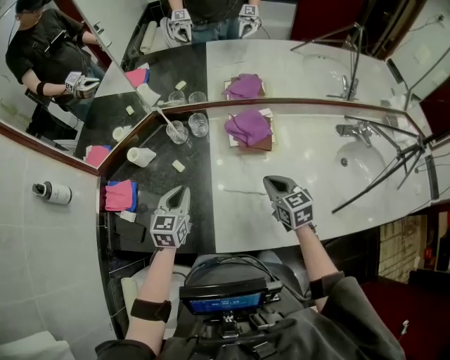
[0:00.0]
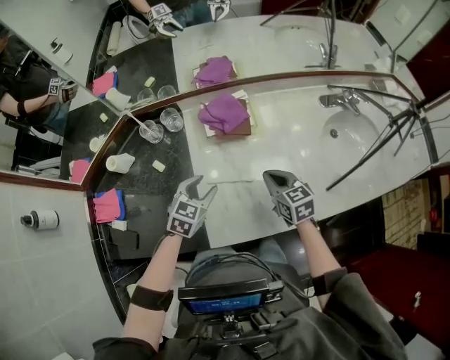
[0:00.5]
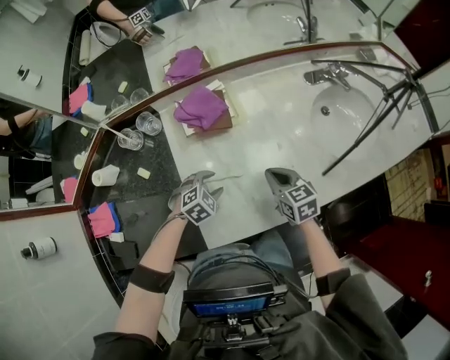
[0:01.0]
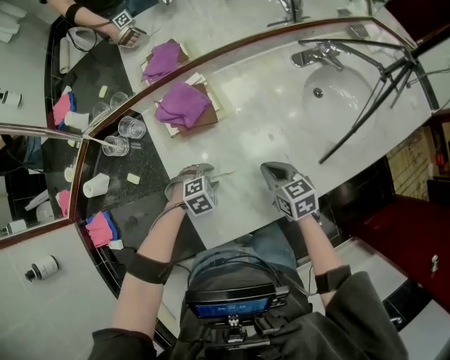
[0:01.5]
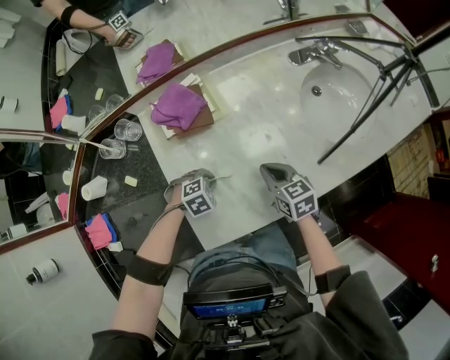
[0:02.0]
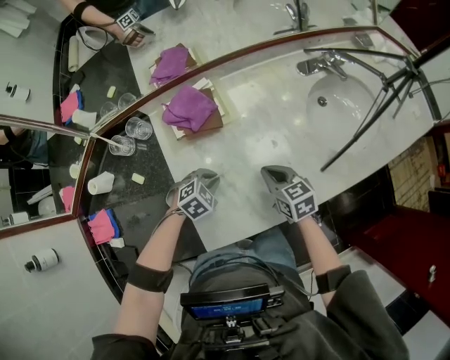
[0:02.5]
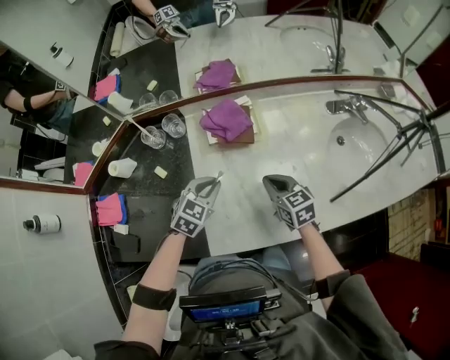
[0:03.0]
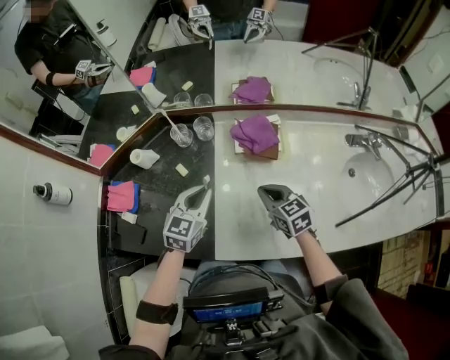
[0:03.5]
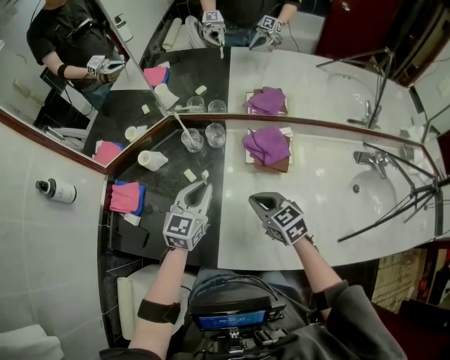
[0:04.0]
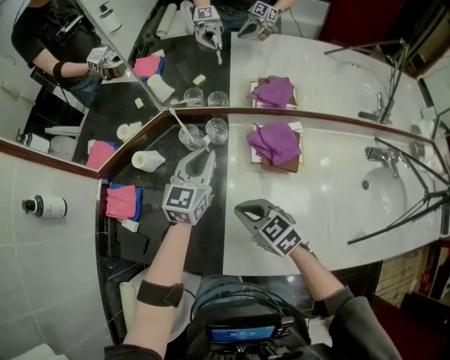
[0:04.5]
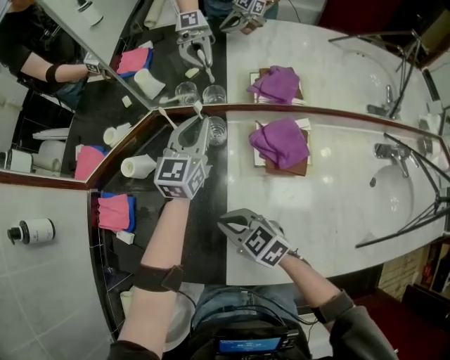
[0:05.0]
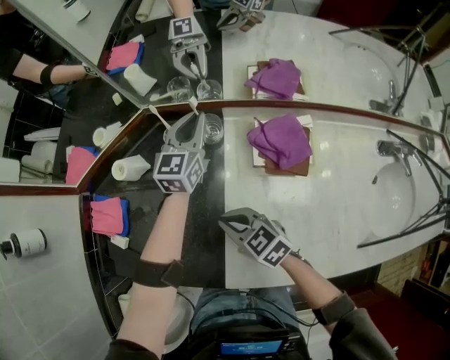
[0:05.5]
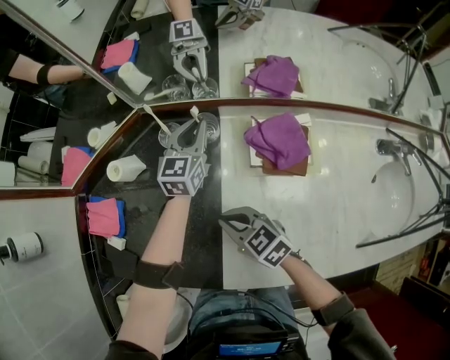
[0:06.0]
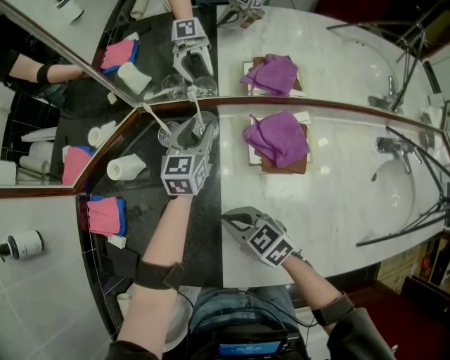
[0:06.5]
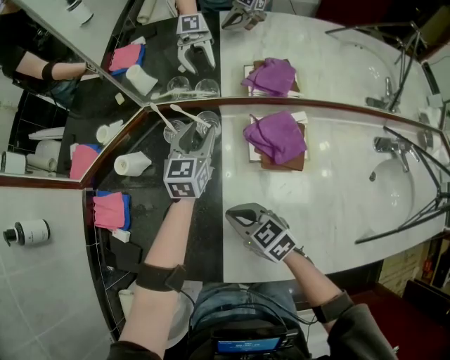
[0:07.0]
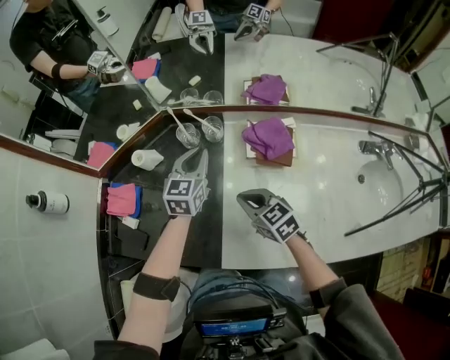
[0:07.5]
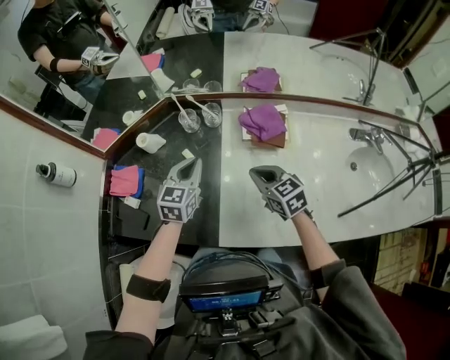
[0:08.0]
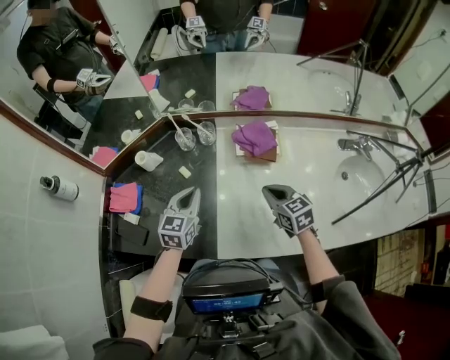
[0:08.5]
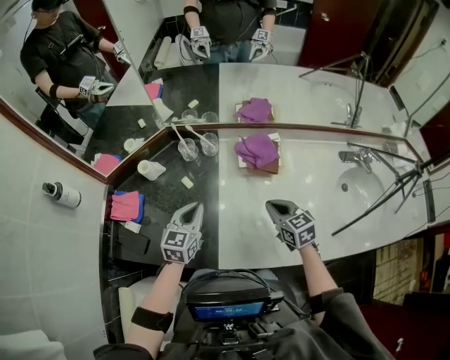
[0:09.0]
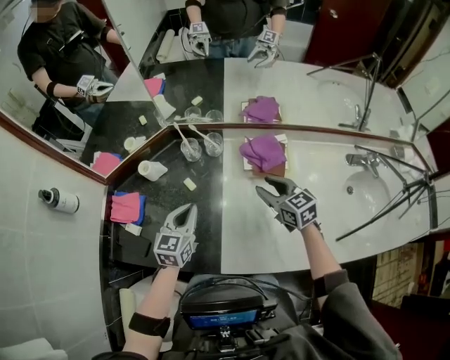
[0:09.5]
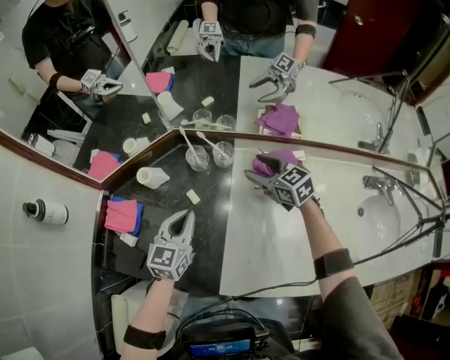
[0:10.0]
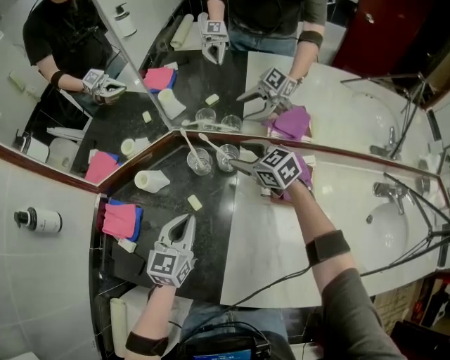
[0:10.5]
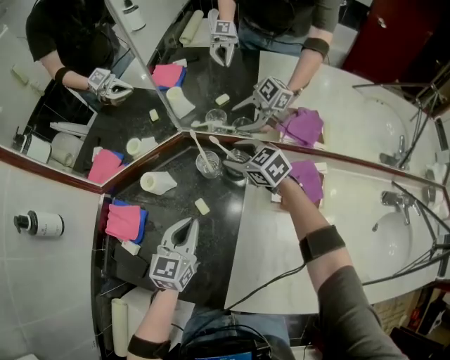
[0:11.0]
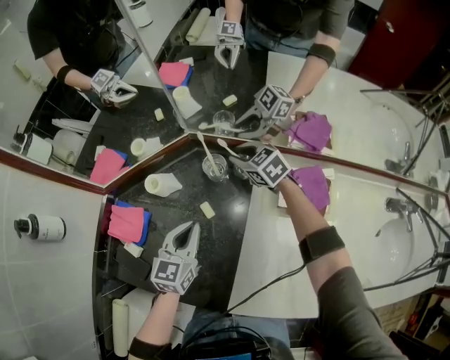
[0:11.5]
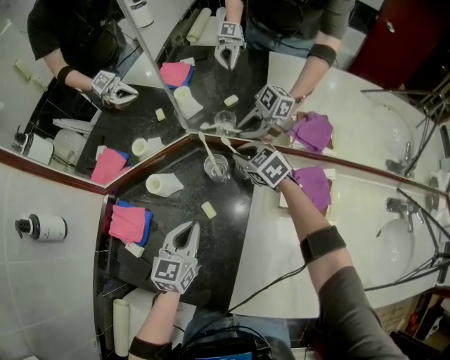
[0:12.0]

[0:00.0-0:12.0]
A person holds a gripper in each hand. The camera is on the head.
0:00.0 to 0:02.0: The right gripper ends up some 20 cm from where it was, and swivels approximately 20 degrees. Meanwhile the left gripper ends up some 30 cm from where it was, tips its fingers downward by about 40 degrees, and opens, then closes again.
0:02.0 to 0:04.0: The right gripper ends up approximately 25 cm from where it was, and changes its angle by about 40 degrees; the left gripper is displaced upward by some 25 cm, and tips its fingers upward by about 50 degrees.
0:04.0 to 0:06.0: The left gripper shifts about 25 cm forward and downward, while the right gripper travels to the left, downward and forward by roughly 15 cm.
0:06.0 to 0:08.0: The right gripper heads to the right, upward and backward, covering approximately 15 cm; the left gripper shifts approximately 25 cm backward, to the left and upward, and opens, then closes again.
0:08.0 to 0:10.0: The right gripper travels forward by roughly 20 cm, and opens up; the left gripper moves to the left, approximately 5 cm, and reaches some 5 cm backward, then returns.
0:10.0 to 0:12.0: The left gripper is displaced downward by approximately 5 cm, while the right gripper goes roughly 20 cm forward, to the left and downward, and closes up.

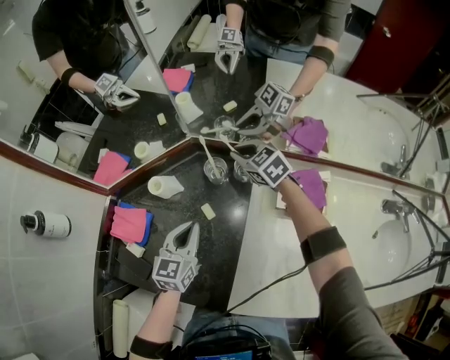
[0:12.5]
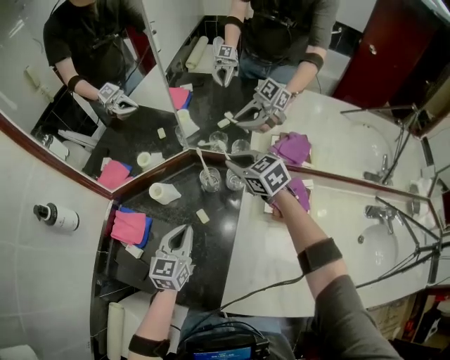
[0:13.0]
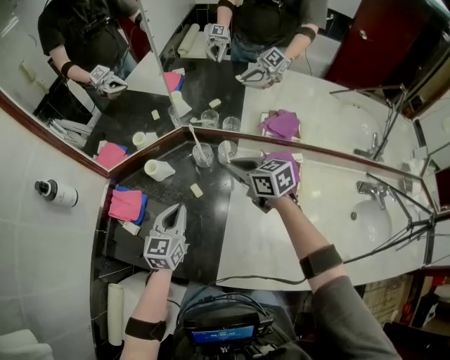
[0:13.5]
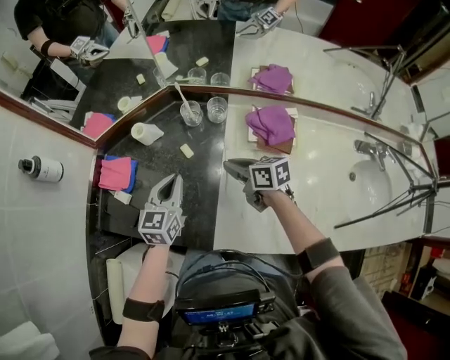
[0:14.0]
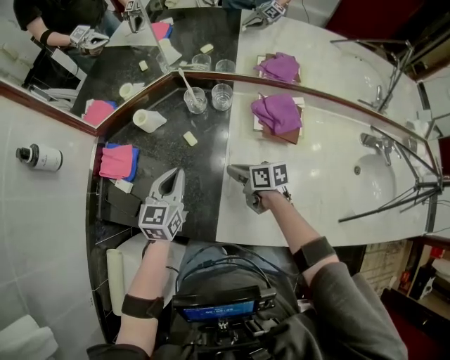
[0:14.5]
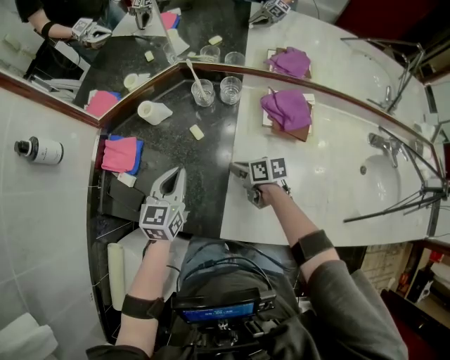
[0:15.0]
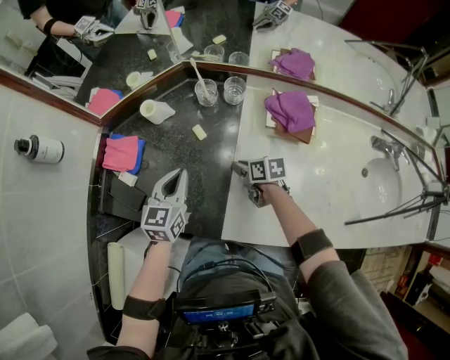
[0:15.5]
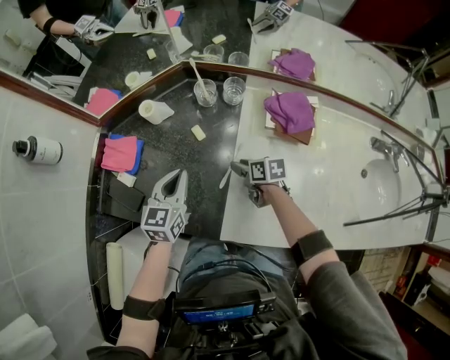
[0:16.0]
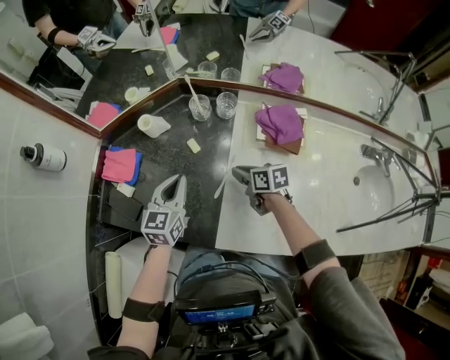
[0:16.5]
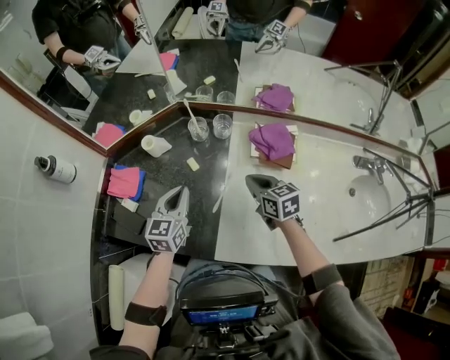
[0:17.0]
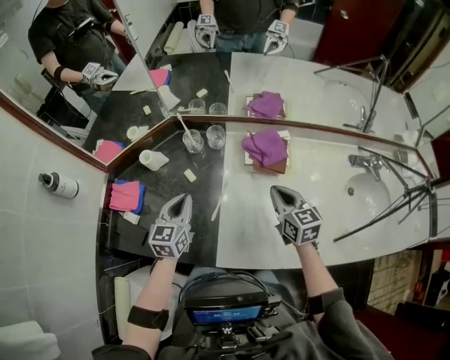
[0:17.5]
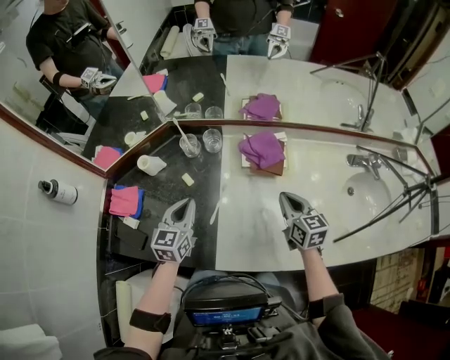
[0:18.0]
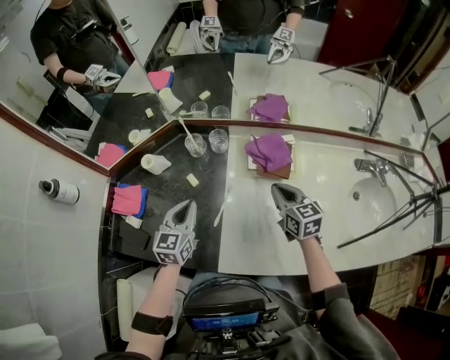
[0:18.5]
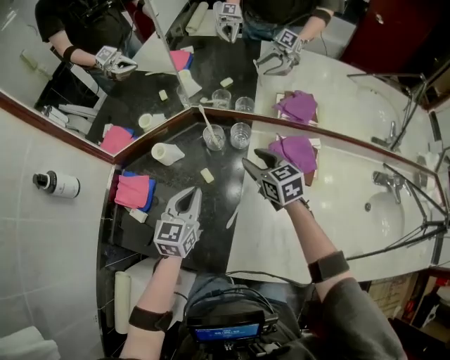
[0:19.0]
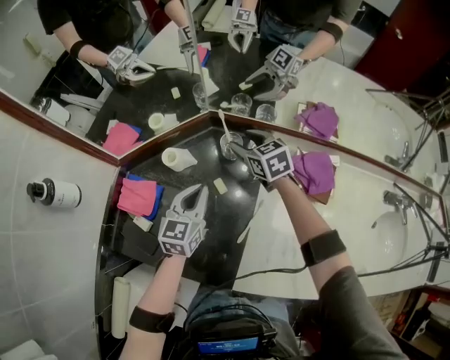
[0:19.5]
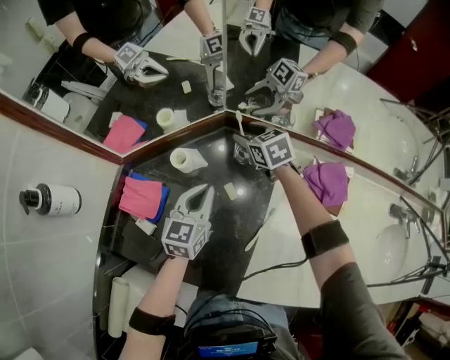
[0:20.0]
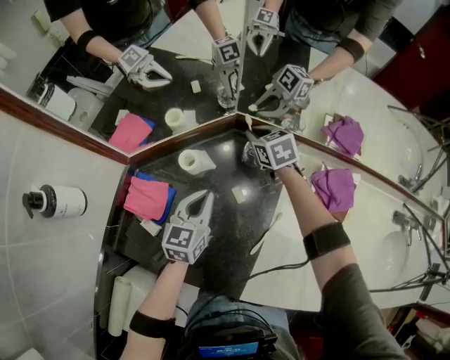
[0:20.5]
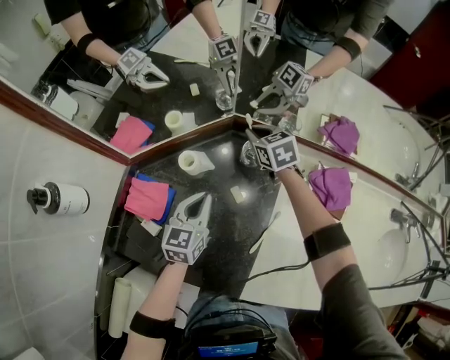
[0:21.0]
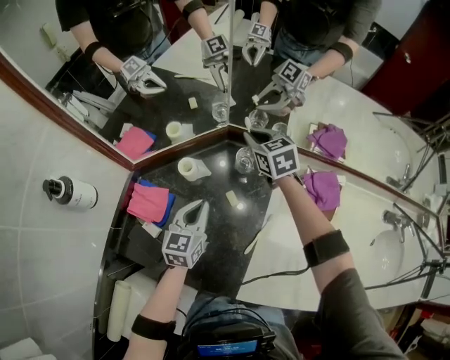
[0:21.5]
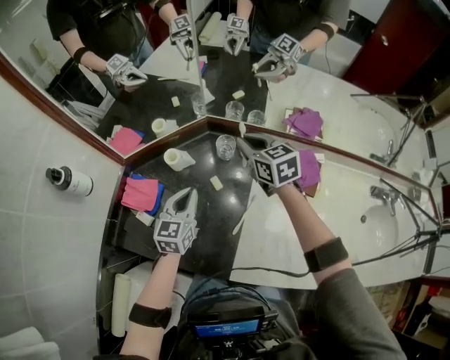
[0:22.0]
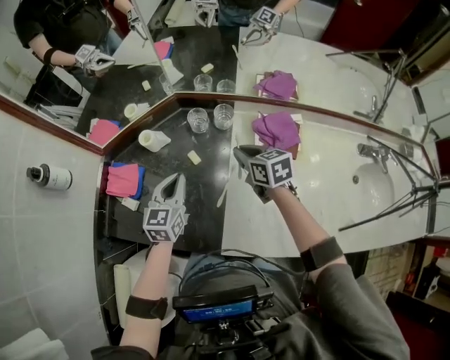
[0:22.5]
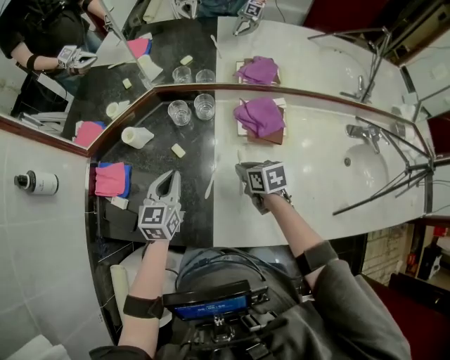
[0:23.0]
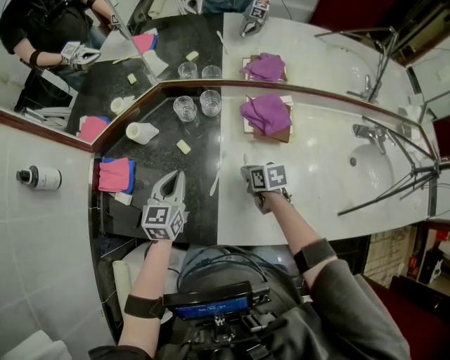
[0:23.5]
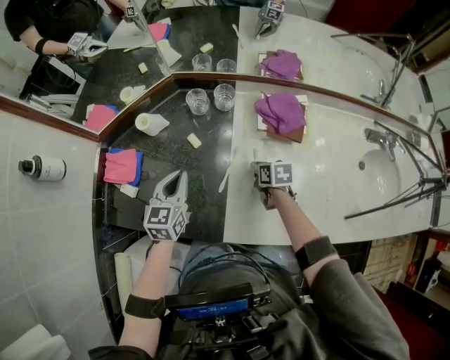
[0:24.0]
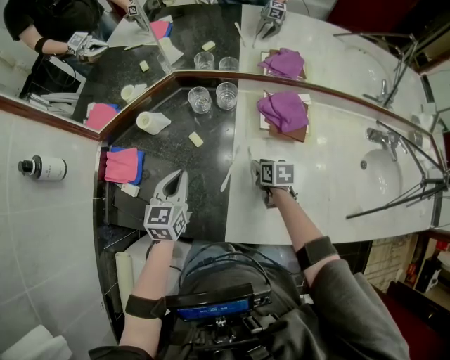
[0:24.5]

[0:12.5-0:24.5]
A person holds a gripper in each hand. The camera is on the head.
0:12.5 to 0:14.5: The left gripper goes roughly 10 cm backward. The right gripper heads backward, covering approximately 30 cm, and rolls clockwise, seen from behind, by about 60 degrees.
0:14.5 to 0:16.5: The right gripper opens, then closes once more.
0:16.5 to 0:18.5: The left gripper is displaced to the right by approximately 5 cm; the right gripper is displaced to the right and upward by some 20 cm, and swivels roughly 40 degrees.
0:18.5 to 0:20.5: The right gripper is displaced forward and to the left by about 40 cm, changes its angle by some 30 degrees, and opens, then closes again. Meanwhile the left gripper travels forward, to the left and downward by roughly 20 cm.
0:20.5 to 0:22.5: The right gripper moves backward and to the right, about 25 cm, and swivels some 20 degrees. The left gripper goes roughly 15 cm backward, upward and to the right.
0:22.5 to 0:24.5: The right gripper is displaced downward and backward by roughly 20 cm, changes its angle by roughly 30 degrees, and opens.

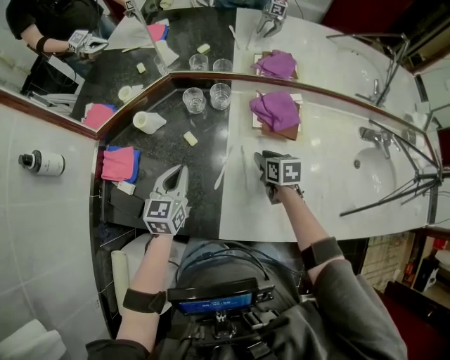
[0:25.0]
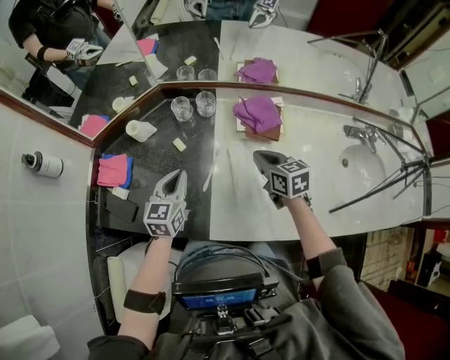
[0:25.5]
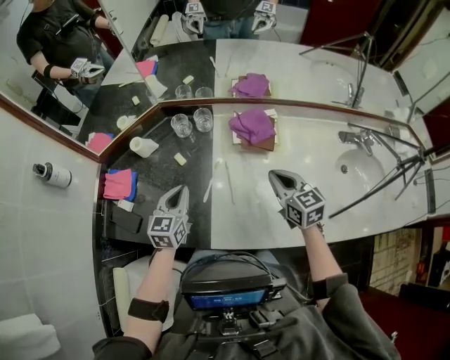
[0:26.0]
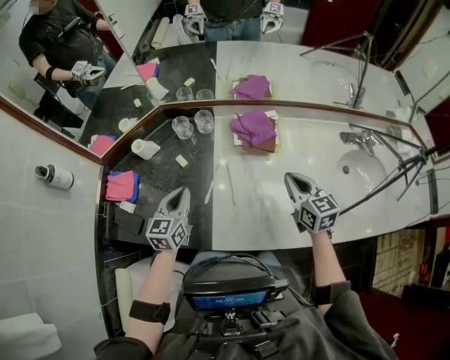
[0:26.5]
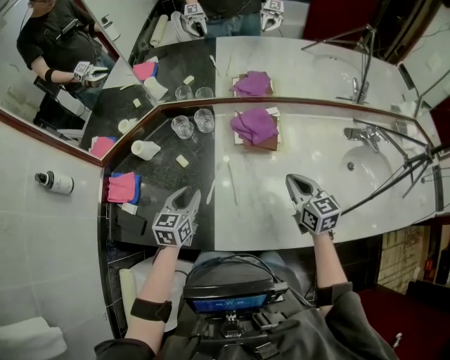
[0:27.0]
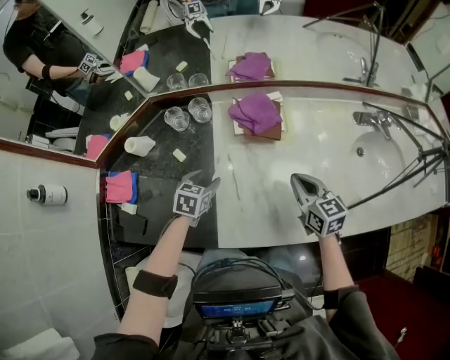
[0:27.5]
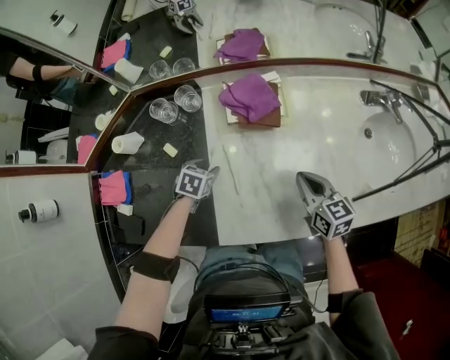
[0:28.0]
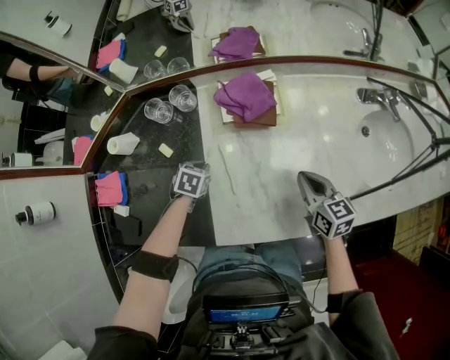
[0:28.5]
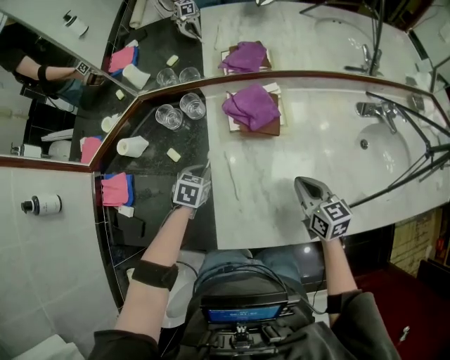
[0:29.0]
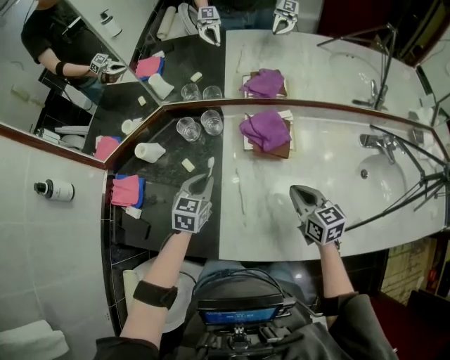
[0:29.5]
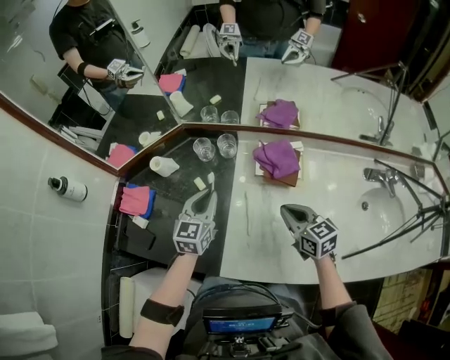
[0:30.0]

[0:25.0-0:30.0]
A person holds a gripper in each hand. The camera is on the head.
0:25.0 to 0:27.5: The right gripper heads to the right, upward and backward, covering about 20 cm, swivels about 20 degrees, and closes. Meanwhile the left gripper shifts roughly 15 cm to the right and downward, swivels approximately 30 degrees, and opens.
0:27.5 to 0:30.0: The right gripper travels downward and back again, about 5 cm each way. The left gripper is displaced upward by roughly 15 cm, tips its fingers upward by approximately 30 degrees, and closes.
